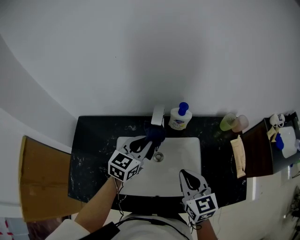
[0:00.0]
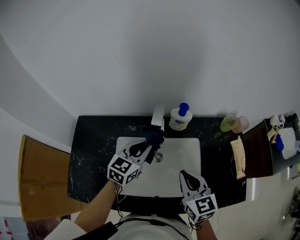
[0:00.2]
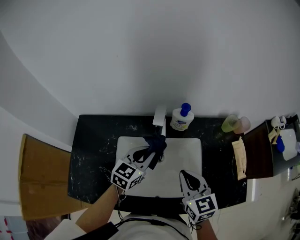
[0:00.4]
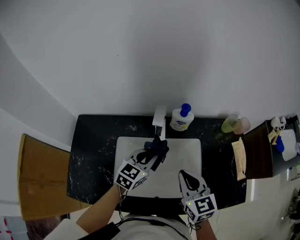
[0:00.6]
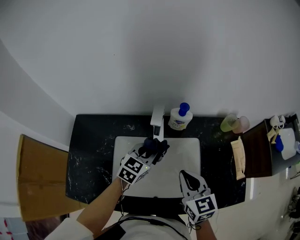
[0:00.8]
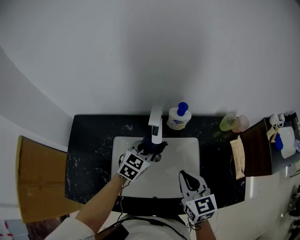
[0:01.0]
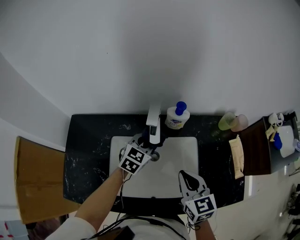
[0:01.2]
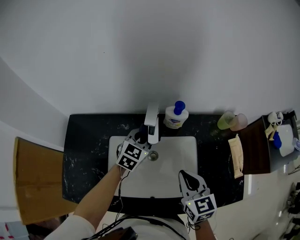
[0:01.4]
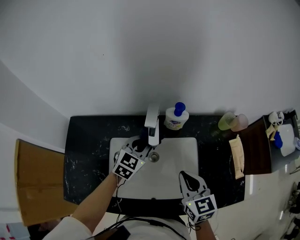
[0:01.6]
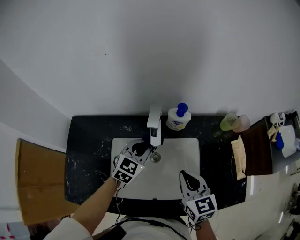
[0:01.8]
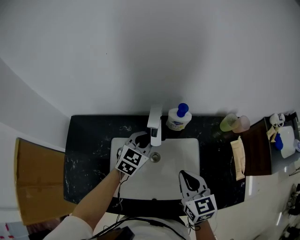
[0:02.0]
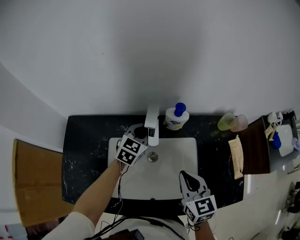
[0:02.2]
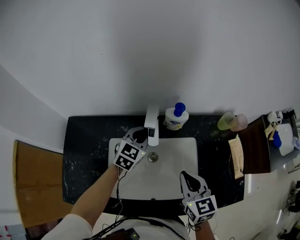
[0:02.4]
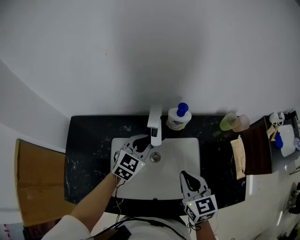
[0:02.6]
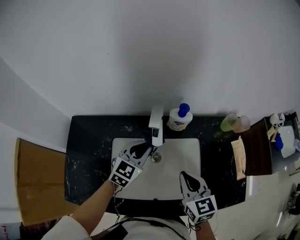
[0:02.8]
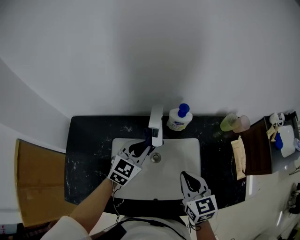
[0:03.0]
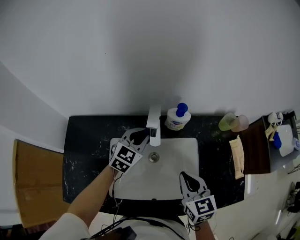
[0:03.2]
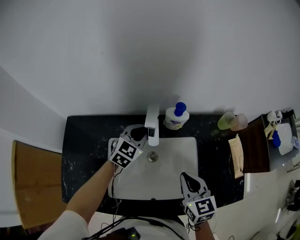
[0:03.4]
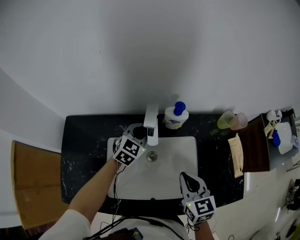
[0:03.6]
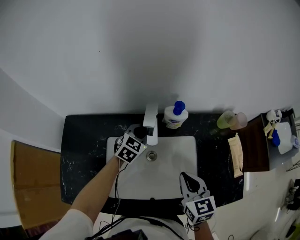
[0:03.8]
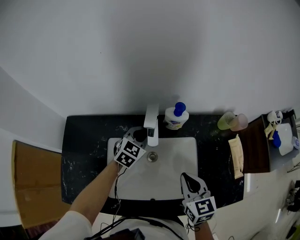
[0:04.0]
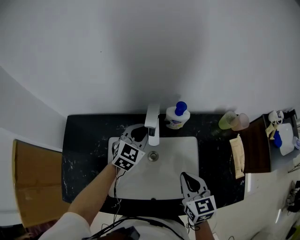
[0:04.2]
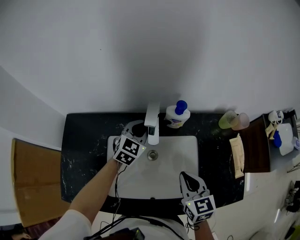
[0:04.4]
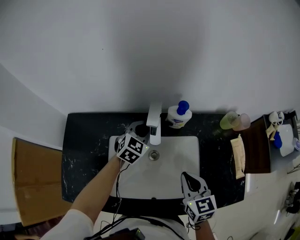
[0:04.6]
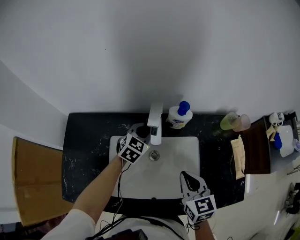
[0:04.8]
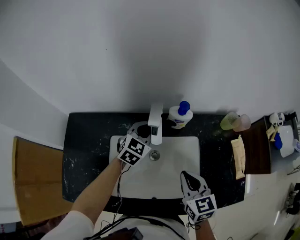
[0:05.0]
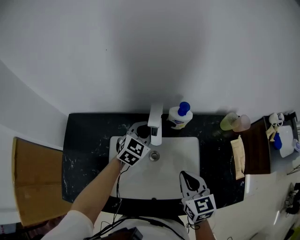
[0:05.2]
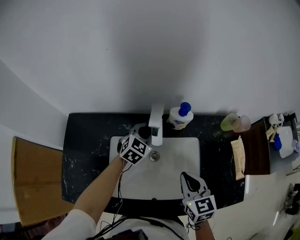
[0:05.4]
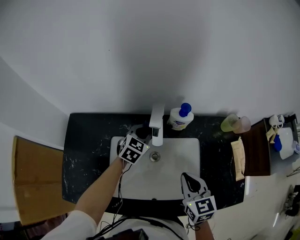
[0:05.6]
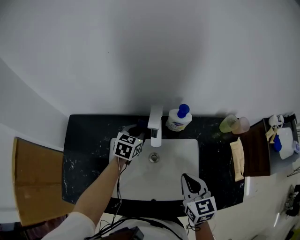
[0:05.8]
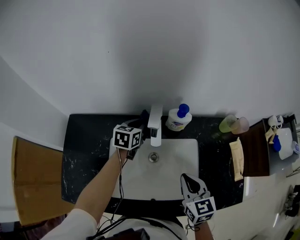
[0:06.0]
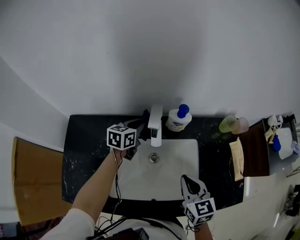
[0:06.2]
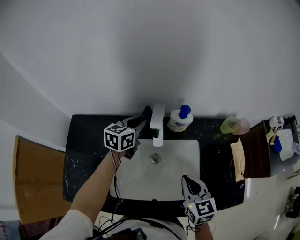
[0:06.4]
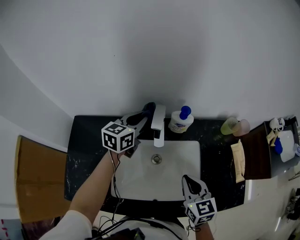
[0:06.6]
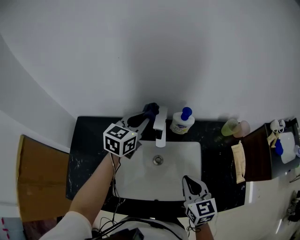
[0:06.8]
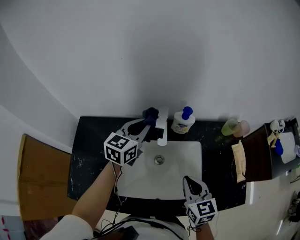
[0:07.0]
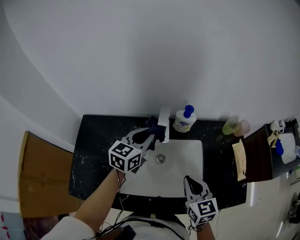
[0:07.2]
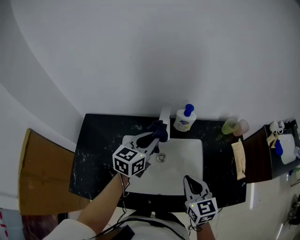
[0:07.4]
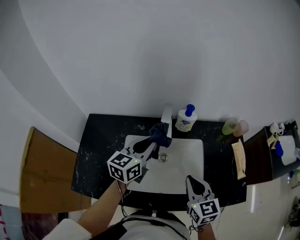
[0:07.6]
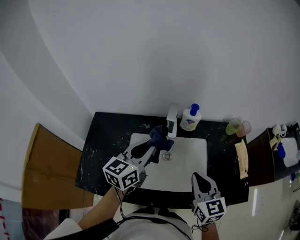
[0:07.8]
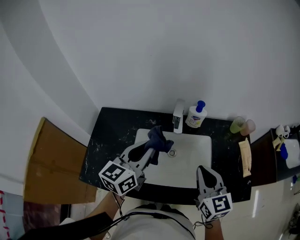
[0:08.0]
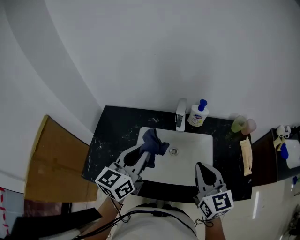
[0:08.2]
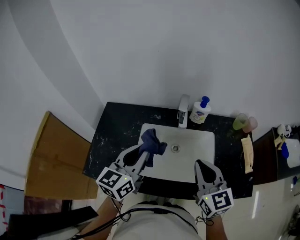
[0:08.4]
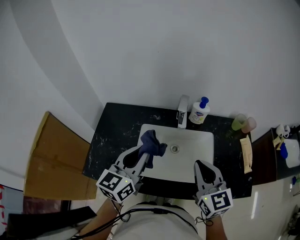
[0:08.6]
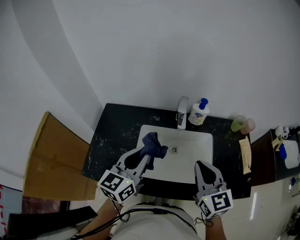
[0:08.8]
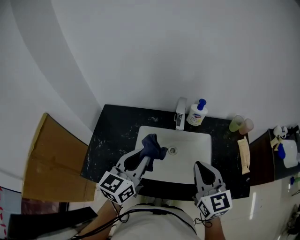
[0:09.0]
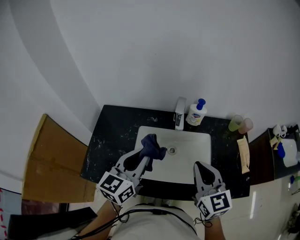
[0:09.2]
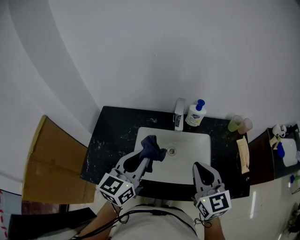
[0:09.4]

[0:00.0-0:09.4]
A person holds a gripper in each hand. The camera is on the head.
0.0 to 1.6 s: The left gripper heads downward, covering roughly 5 cm.
1.6 to 3.2 s: The left gripper swings forward and backward, some 10 cm each way, with 2 reversals.
3.2 to 4.8 s: The left gripper swings up and down, approximately 5 cm each way, with 2 reversals.
4.8 to 6.2 s: The left gripper moves roughly 5 cm, and swivels some 30 degrees.
6.2 to 7.8 s: The right gripper goes some 10 cm upward and backward; the left gripper shifts approximately 25 cm backward and upward, and rotates approximately 20 degrees.
7.8 to 9.4 s: The left gripper is displaced backward and to the left by approximately 10 cm. The right gripper travels upward by some 5 cm.

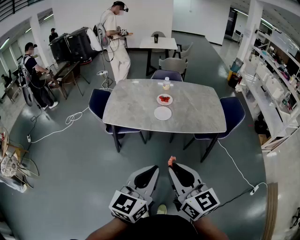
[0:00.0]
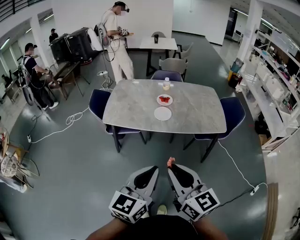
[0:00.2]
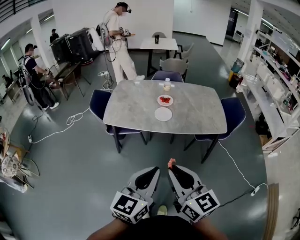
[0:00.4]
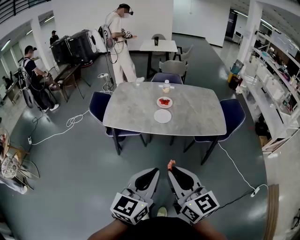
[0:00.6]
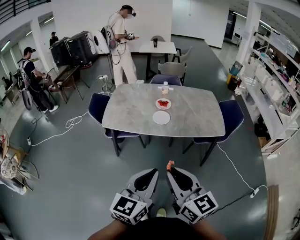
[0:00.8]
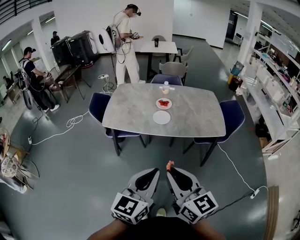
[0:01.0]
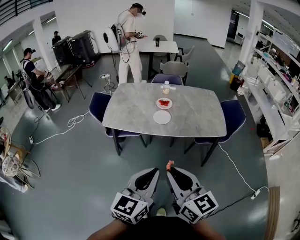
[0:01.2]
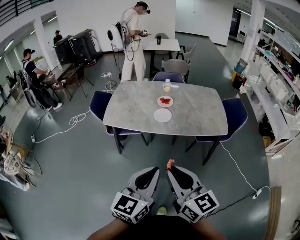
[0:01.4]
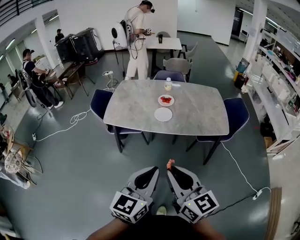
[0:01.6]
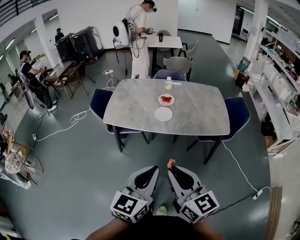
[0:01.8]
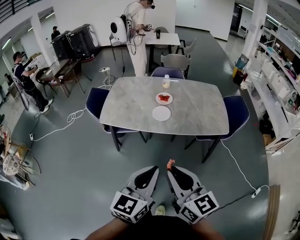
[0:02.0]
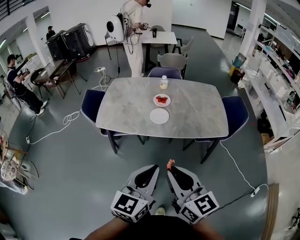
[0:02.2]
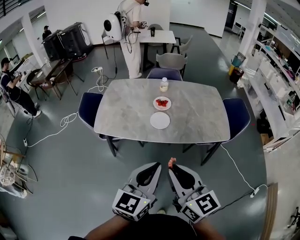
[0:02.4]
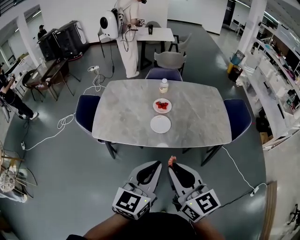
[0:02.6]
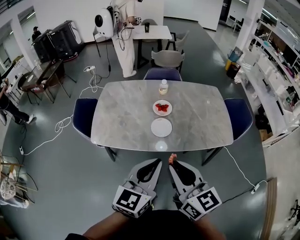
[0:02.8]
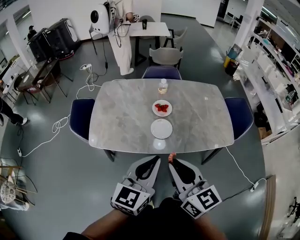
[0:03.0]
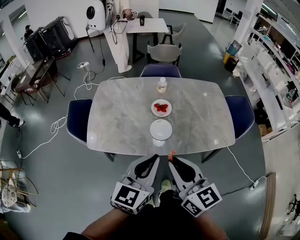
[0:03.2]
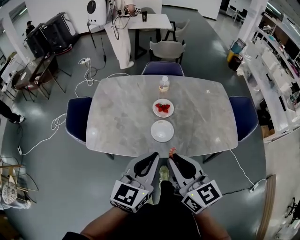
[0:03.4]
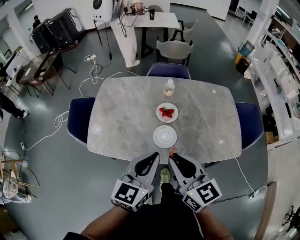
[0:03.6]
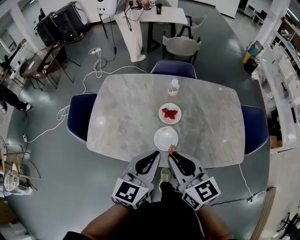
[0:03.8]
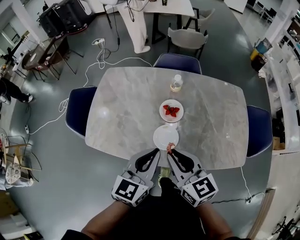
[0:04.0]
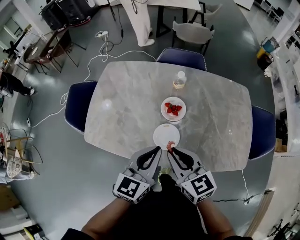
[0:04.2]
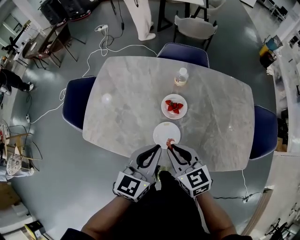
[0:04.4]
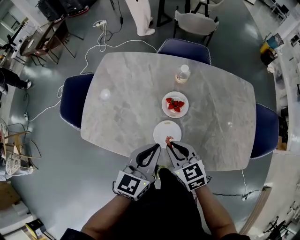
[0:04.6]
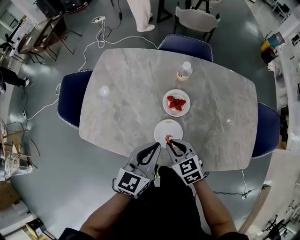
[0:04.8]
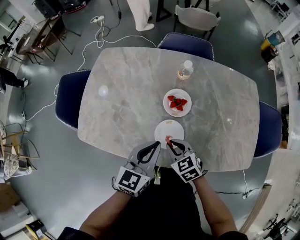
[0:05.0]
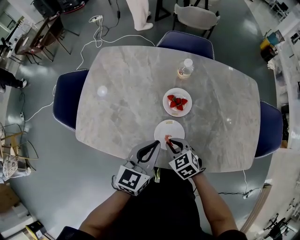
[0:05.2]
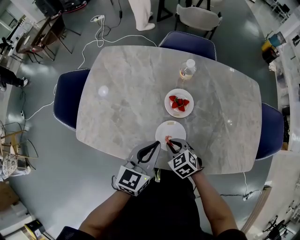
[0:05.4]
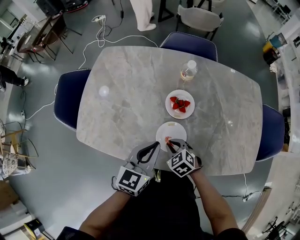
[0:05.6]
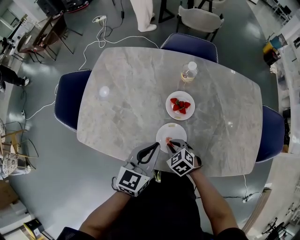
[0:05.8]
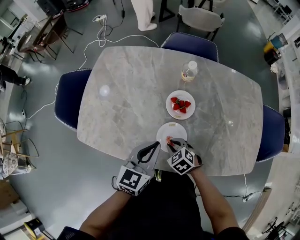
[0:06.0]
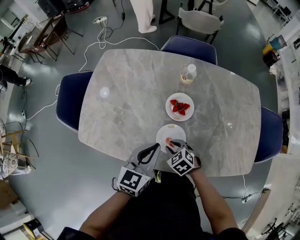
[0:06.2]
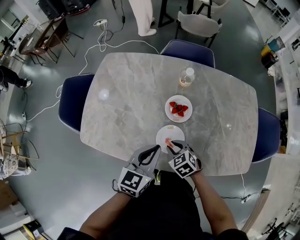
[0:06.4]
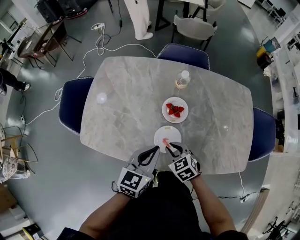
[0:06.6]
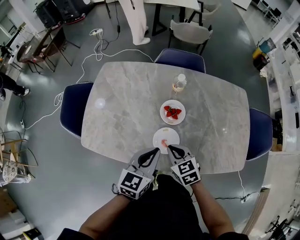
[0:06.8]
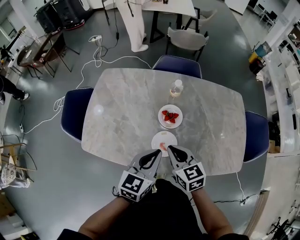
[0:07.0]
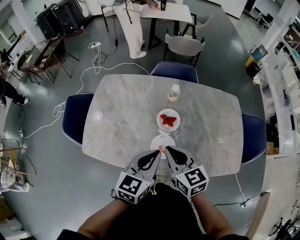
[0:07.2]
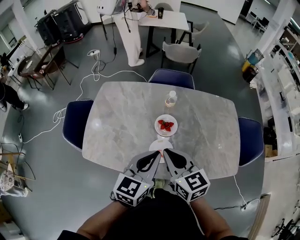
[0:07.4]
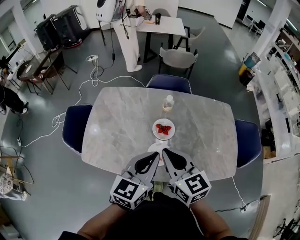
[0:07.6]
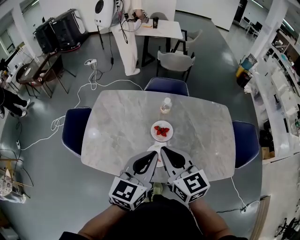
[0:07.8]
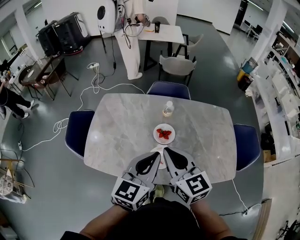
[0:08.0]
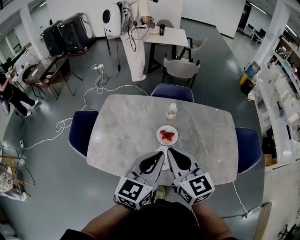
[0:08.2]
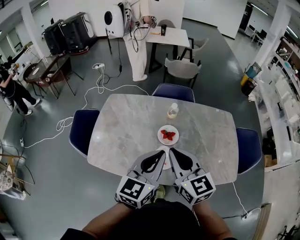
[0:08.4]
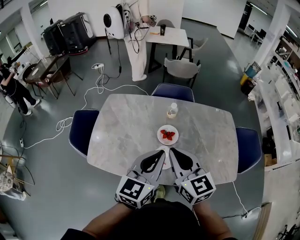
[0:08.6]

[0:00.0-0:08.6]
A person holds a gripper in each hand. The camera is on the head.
0.0 to 1.4 s: The grippers make only small movements.
1.4 to 2.8 s: The grippers both shift forward by approximately 25 cm.
2.8 to 4.4 s: Both grippers travel together forward and downward, some 35 cm. The right gripper turns by approximately 30 degrees.
4.4 to 5.8 s: The left gripper goes about 10 cm downward. The right gripper shifts about 25 cm downward, and tips its fingers downward by roughly 30 degrees.
5.8 to 7.2 s: The right gripper heads upward, covering about 30 cm, and angles its fingers upward, by roughly 40 degrees. Meanwhile the left gripper moves upward, roughly 15 cm.
7.2 to 8.6 s: Both grippers travel together upward, approximately 10 cm.

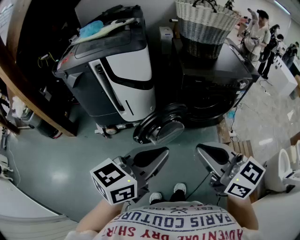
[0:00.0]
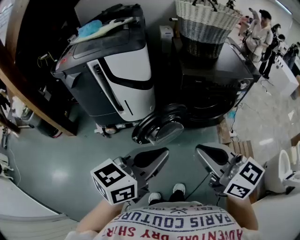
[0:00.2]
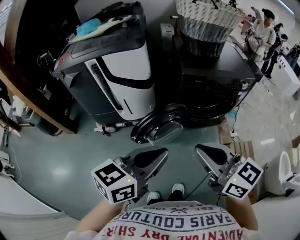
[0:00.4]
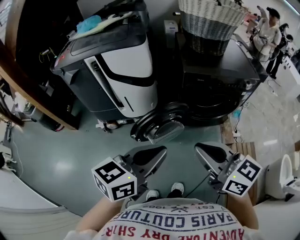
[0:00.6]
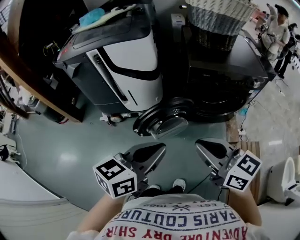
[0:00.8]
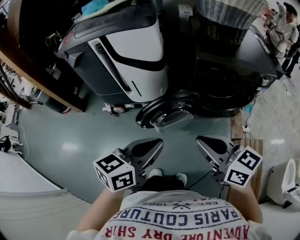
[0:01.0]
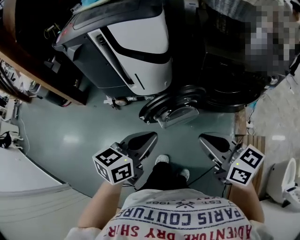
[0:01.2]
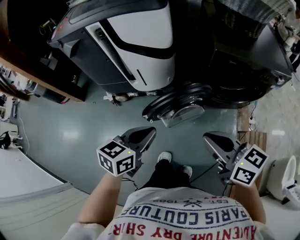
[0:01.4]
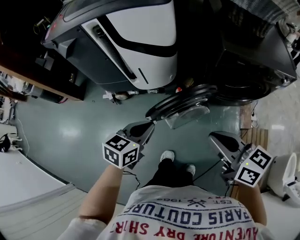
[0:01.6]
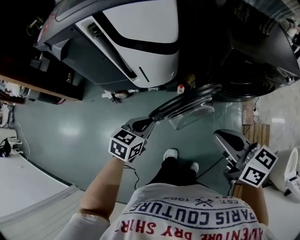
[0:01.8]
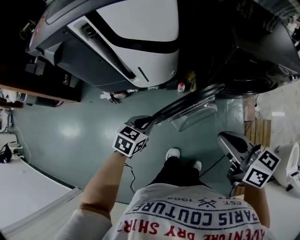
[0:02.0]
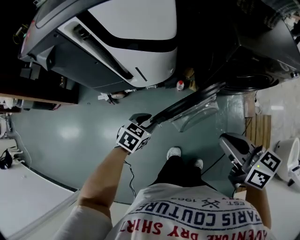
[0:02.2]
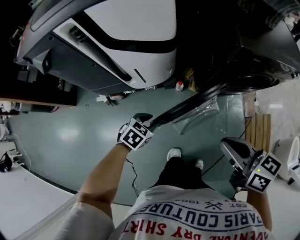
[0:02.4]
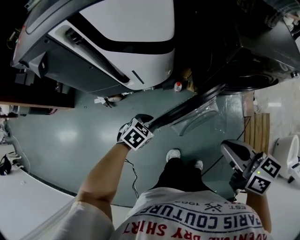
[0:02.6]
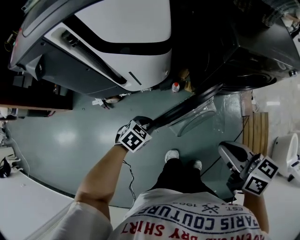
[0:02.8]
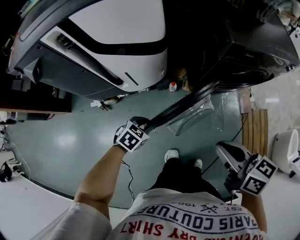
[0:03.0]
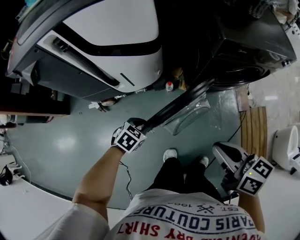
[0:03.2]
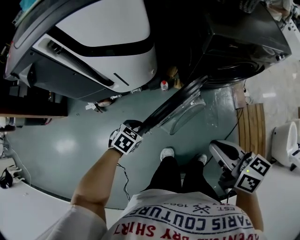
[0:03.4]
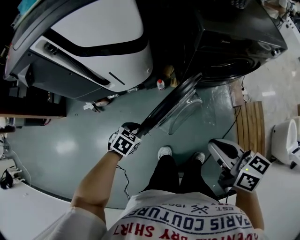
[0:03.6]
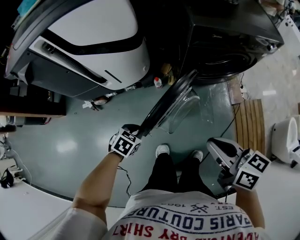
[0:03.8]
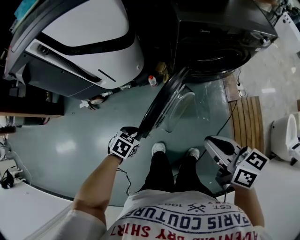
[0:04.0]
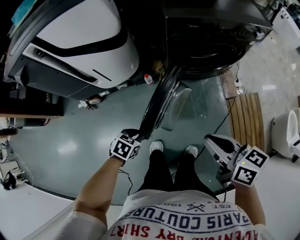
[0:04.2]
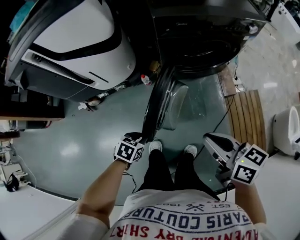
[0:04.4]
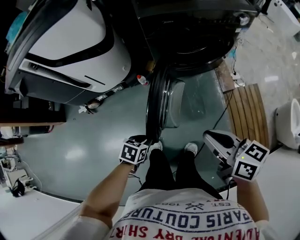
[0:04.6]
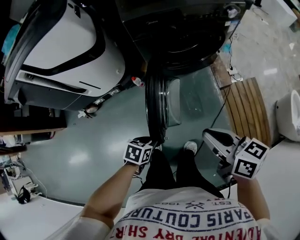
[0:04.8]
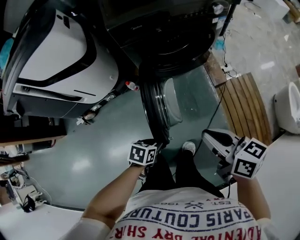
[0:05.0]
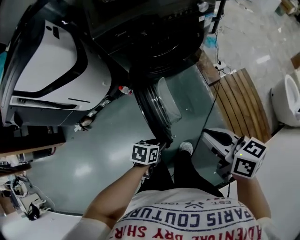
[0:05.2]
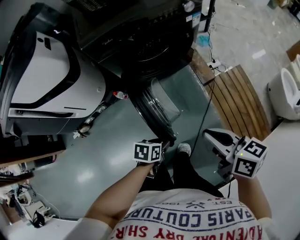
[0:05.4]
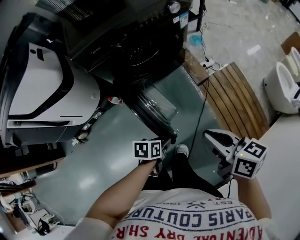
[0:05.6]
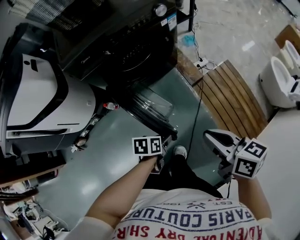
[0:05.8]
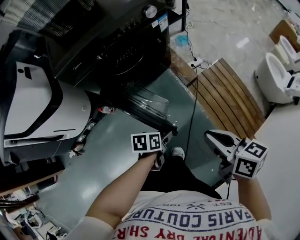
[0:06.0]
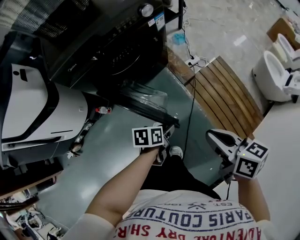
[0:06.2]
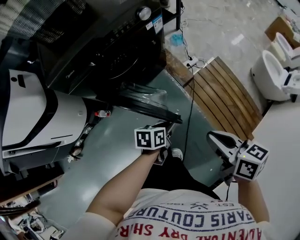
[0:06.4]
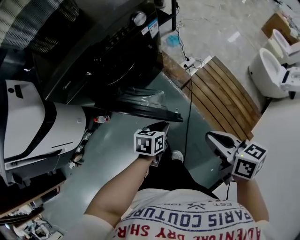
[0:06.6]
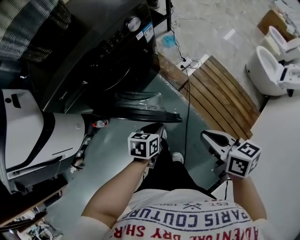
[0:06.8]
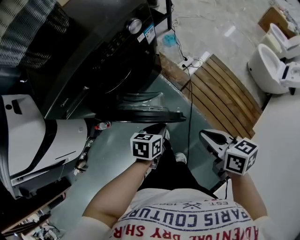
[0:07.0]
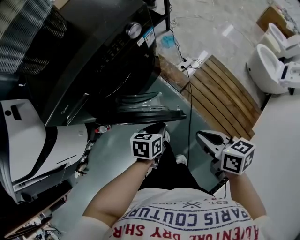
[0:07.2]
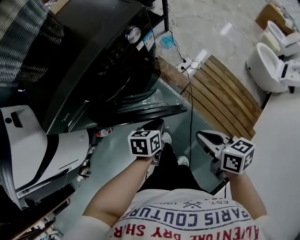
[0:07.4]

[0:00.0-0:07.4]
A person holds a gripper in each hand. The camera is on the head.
0.0 to 1.4 s: Both grippers travel together downward and forward, approximately 20 cm. The right gripper rotates some 20 degrees. The left gripper turns by some 20 degrees.
1.4 to 3.0 s: The right gripper heads downward and forward, covering about 10 cm, and swivels about 20 degrees. Meanwhile the left gripper is displaced downward and forward by about 30 cm, and tilts its fingers approximately 30 degrees downward.
3.0 to 4.4 s: Both grippers travel together to the right and backward, approximately 20 cm.
4.4 to 6.0 s: The left gripper shifts some 35 cm to the right and forward, changes its angle by some 20 degrees, and opens. Meanwhile the right gripper shifts some 25 cm to the right, and swivels some 20 degrees.
6.0 to 7.4 s: The left gripper heads forward, covering about 20 cm, rotates approximately 20 degrees, and closes. The right gripper heads forward and downward, covering about 15 cm.
